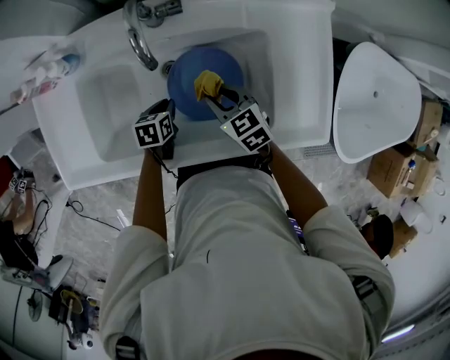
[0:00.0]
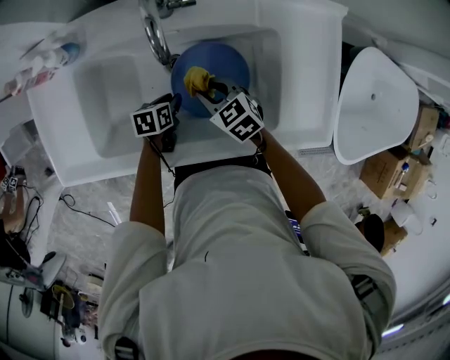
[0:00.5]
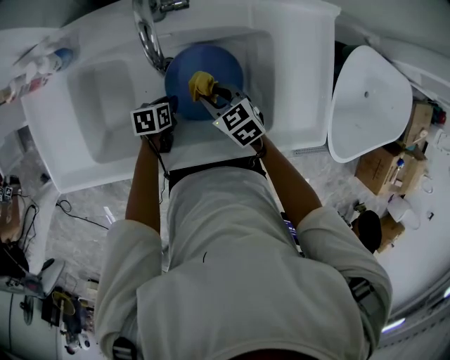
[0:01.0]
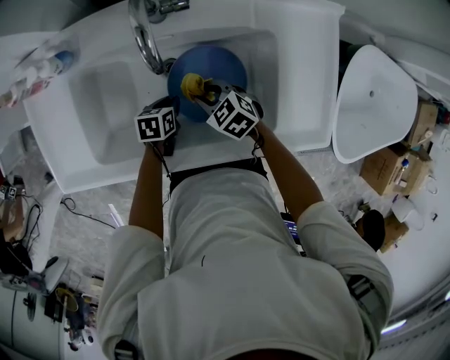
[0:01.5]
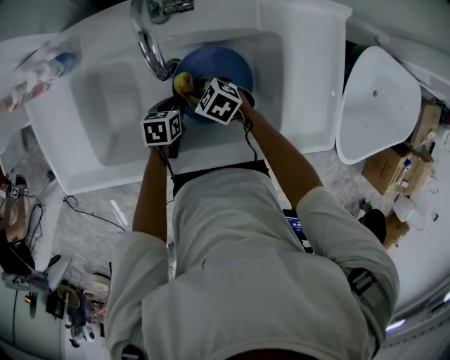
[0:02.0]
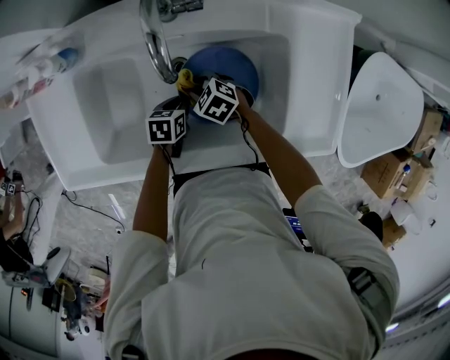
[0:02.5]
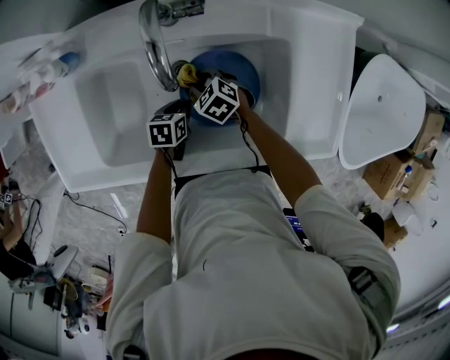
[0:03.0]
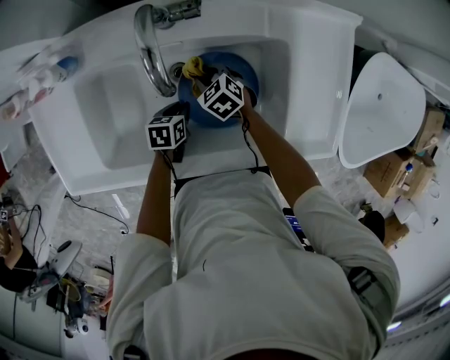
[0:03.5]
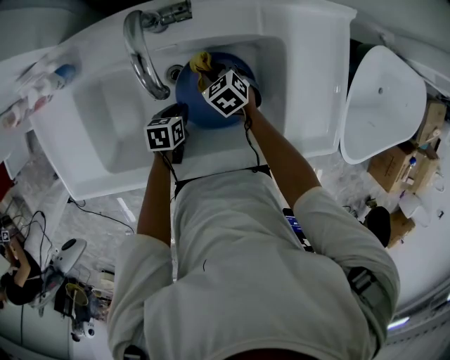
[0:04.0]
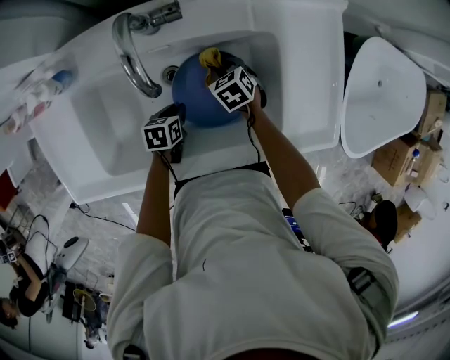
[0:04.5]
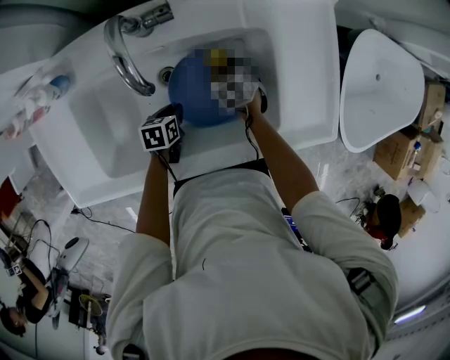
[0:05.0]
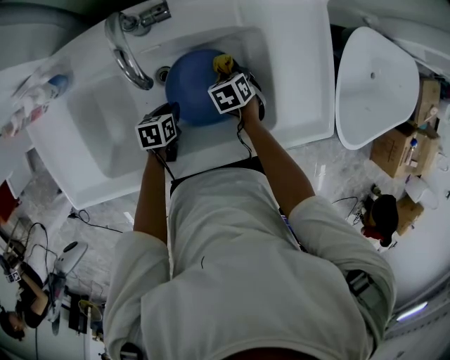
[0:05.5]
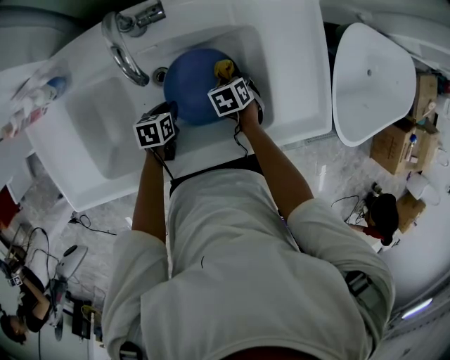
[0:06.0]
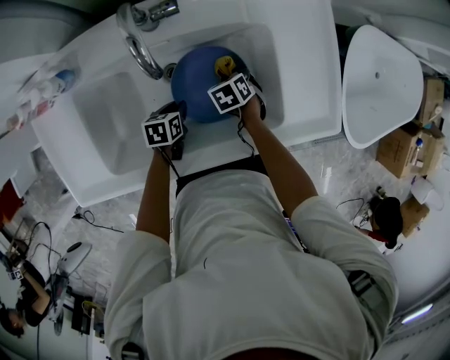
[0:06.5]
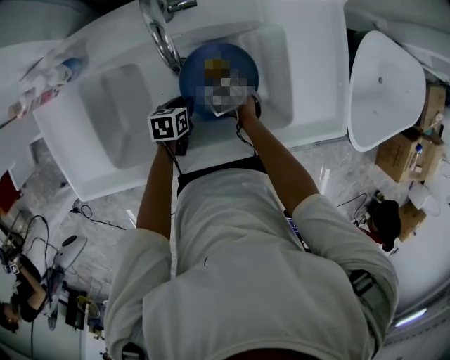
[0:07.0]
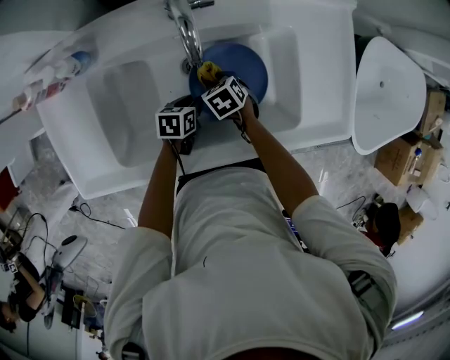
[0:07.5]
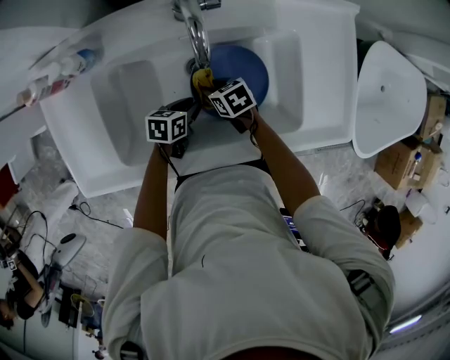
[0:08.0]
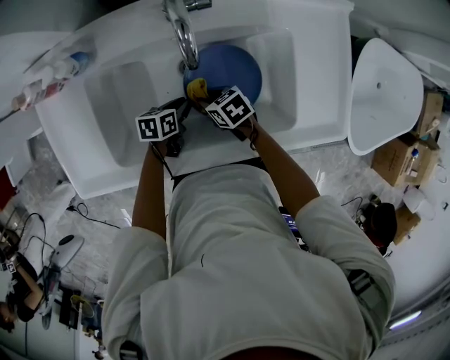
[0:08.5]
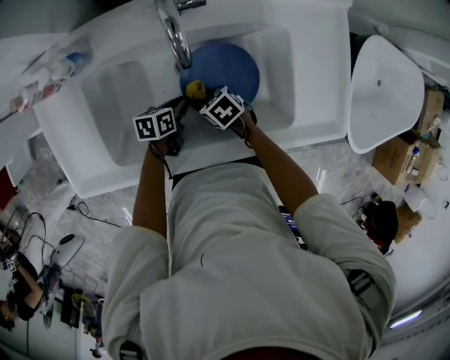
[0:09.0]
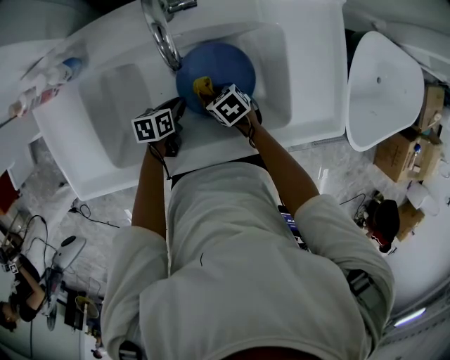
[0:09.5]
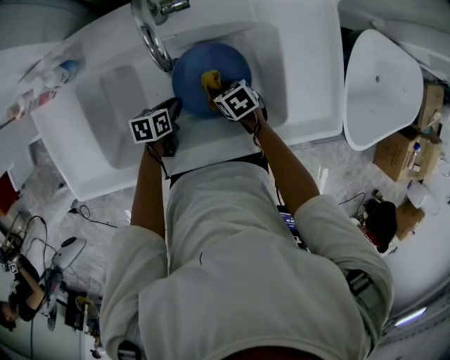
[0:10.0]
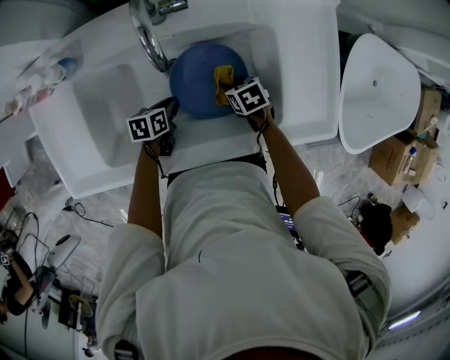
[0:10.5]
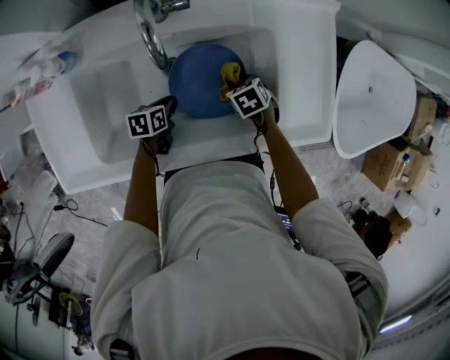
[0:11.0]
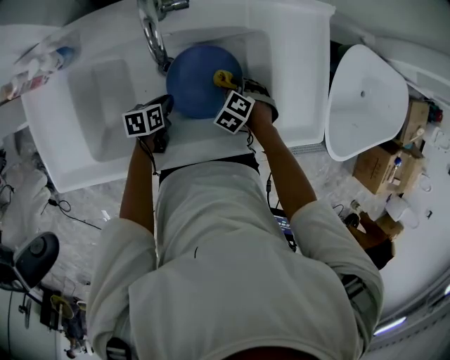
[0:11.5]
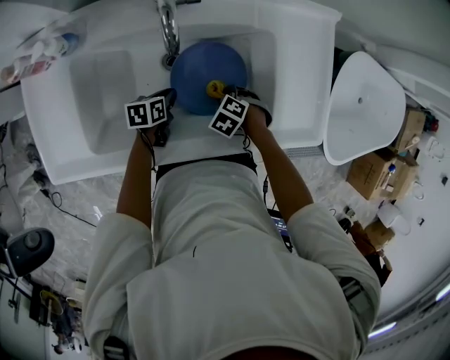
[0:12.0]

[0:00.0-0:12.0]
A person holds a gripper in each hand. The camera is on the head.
0:00.0 to 0:02.0: The right gripper shifts roughly 10 cm downward, and changes its angle by some 30 degrees.
0:02.0 to 0:04.0: The right gripper ends up roughly 10 cm from where it was, and changes its angle by about 20 degrees.
0:04.0 to 0:06.0: The right gripper ends up about 15 cm from where it was, and rotates about 30 degrees.
0:06.0 to 0:08.0: The right gripper ends up approximately 20 cm from where it was, and turns by approximately 30 degrees.
0:08.0 to 0:10.0: The right gripper moves about 10 cm.
0:10.0 to 0:12.0: The right gripper shifts by roughly 5 cm, and rotates some 40 degrees.

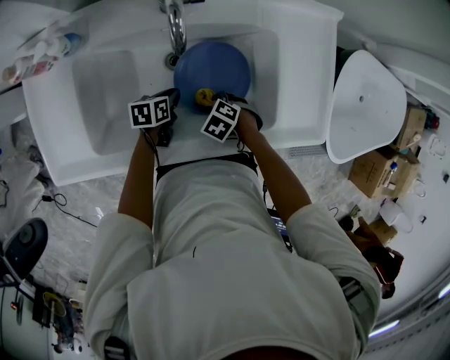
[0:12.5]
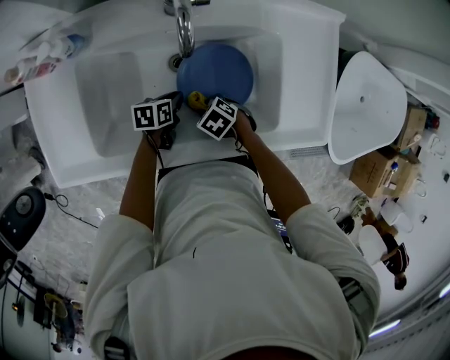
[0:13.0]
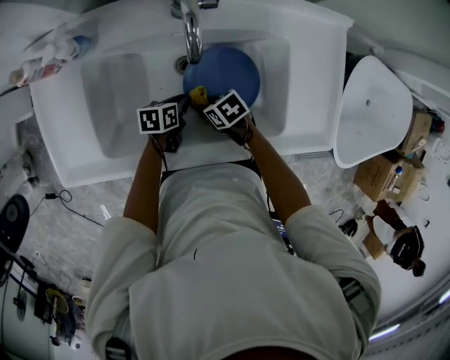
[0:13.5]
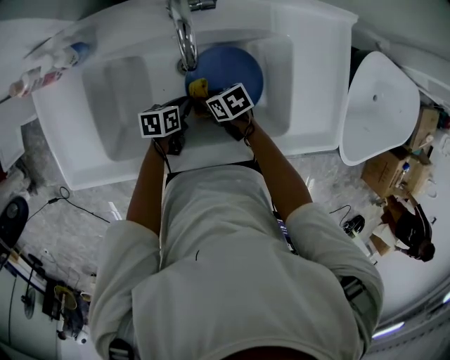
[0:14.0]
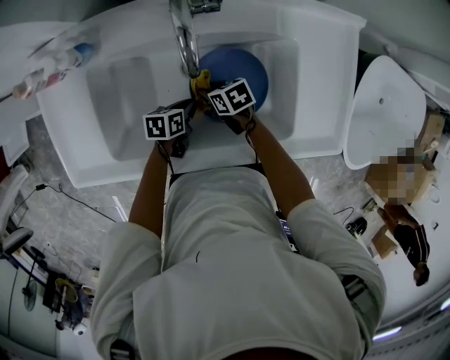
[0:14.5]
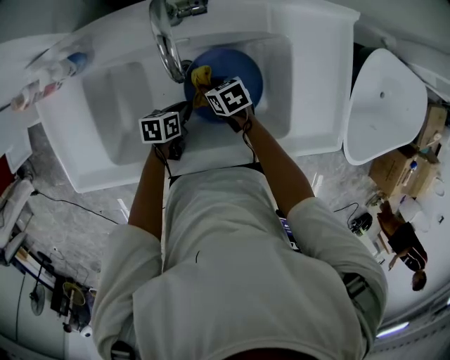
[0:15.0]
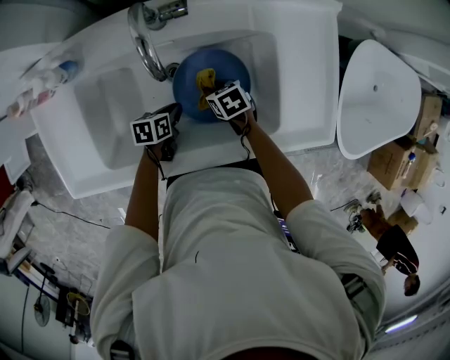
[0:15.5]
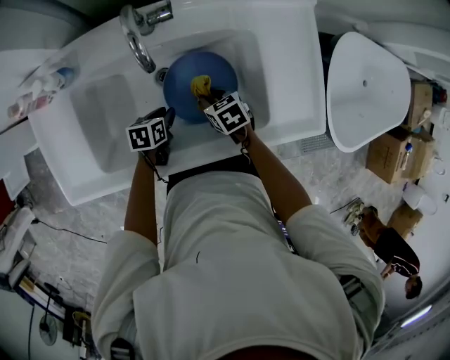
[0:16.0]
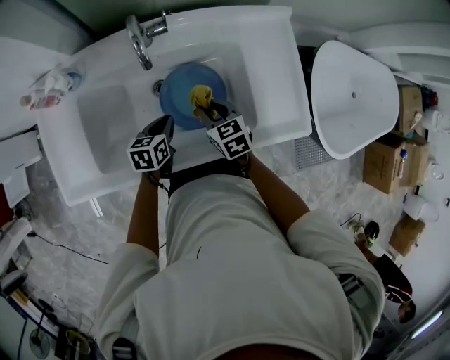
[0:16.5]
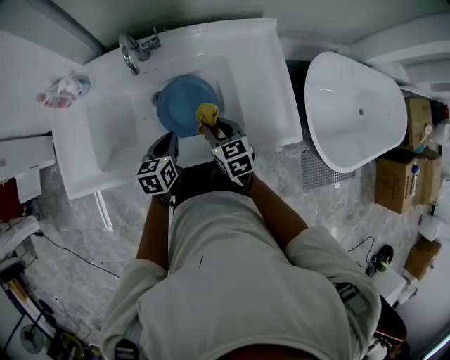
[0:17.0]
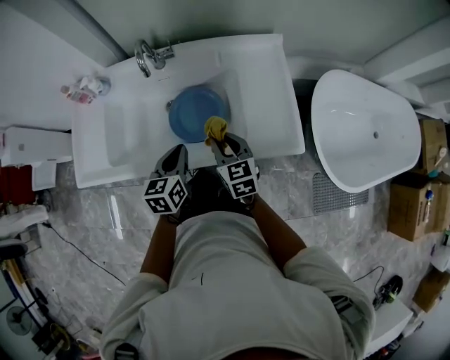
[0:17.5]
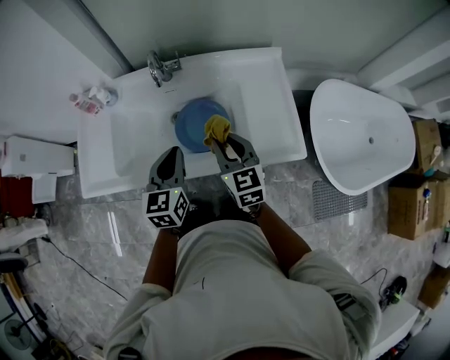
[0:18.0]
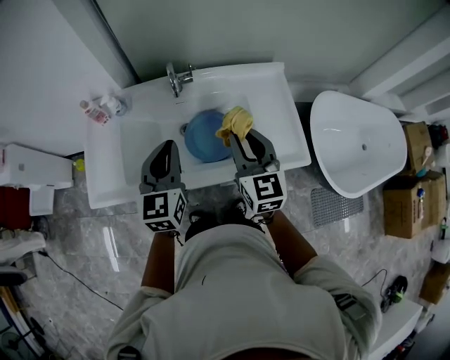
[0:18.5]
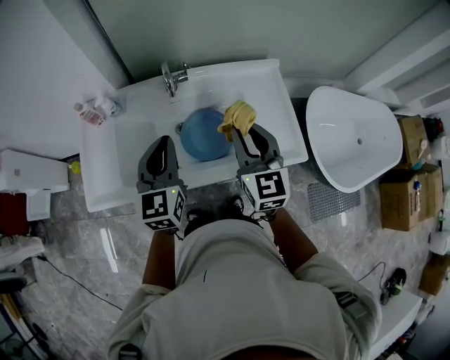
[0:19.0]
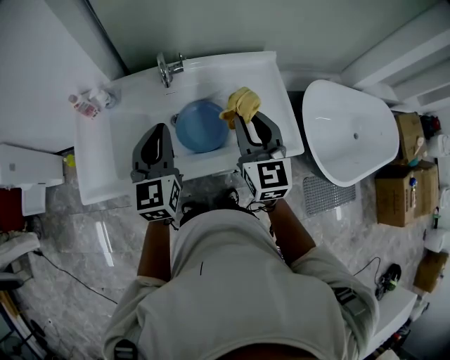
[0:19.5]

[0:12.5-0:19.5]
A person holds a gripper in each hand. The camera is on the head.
0:12.5 to 0:14.5: The right gripper changes place by about 10 cm, and changes its angle by some 50 degrees.
0:14.5 to 0:16.0: The right gripper moves about 10 cm.
0:16.0 to 0:17.5: The right gripper is displaced upward, backward and to the right by roughly 25 cm, and tips its fingers upward by about 30 degrees. The left gripper goes roughly 30 cm upward, to the right and backward, turns by approximately 40 degrees, and closes its fingers.
0:17.5 to 0:19.5: The right gripper is displaced upward by some 20 cm, and rotates some 30 degrees. Meanwhile the left gripper moves upward and to the left, roughly 20 cm, and changes its angle by roughly 30 degrees.

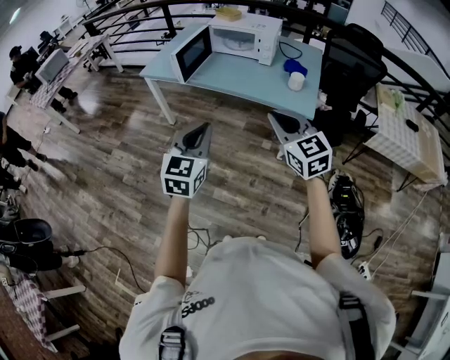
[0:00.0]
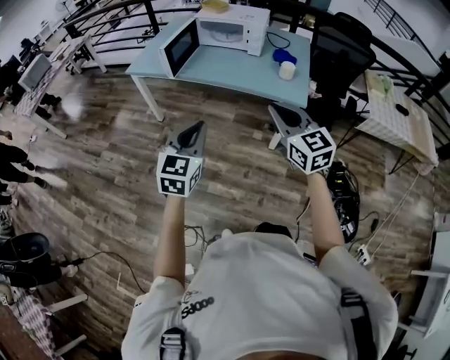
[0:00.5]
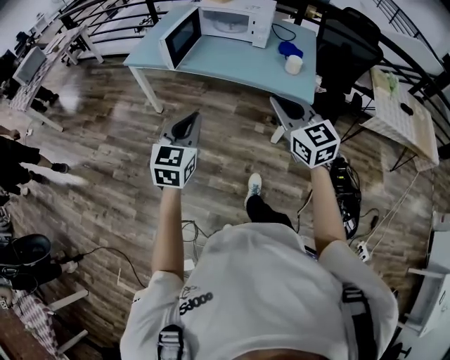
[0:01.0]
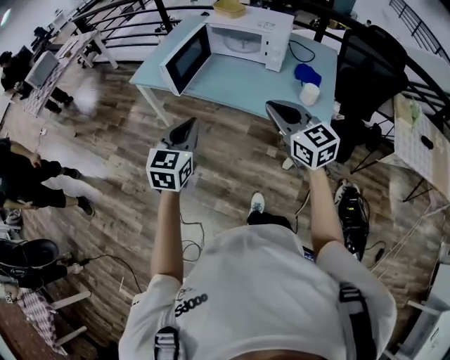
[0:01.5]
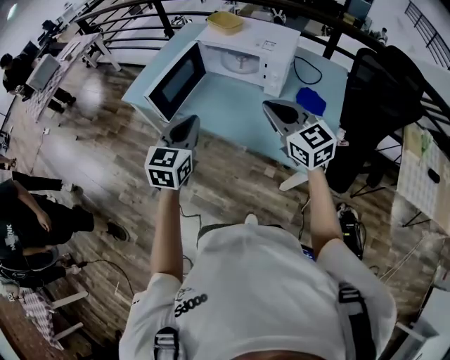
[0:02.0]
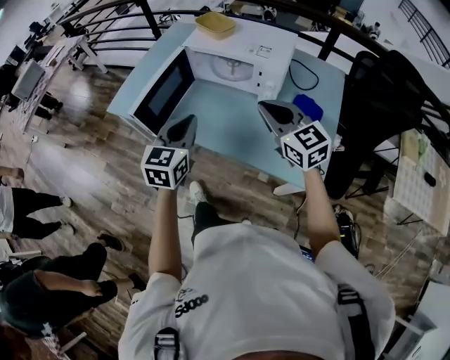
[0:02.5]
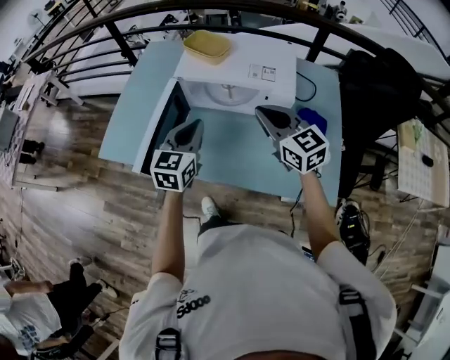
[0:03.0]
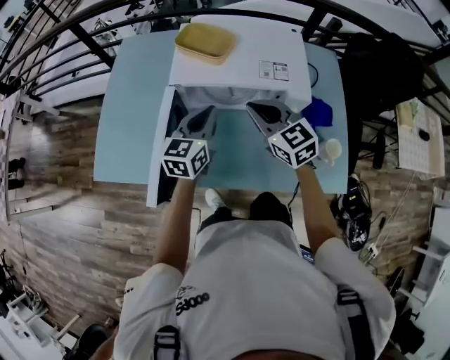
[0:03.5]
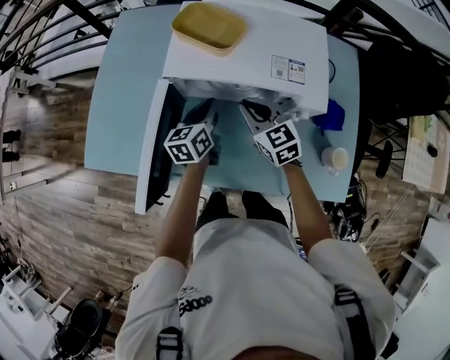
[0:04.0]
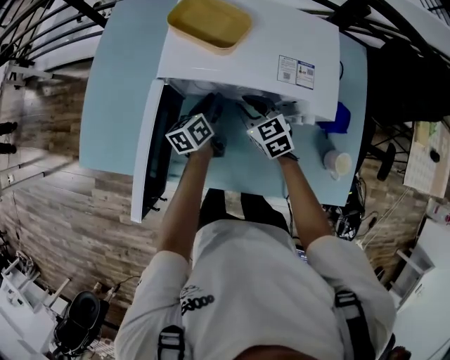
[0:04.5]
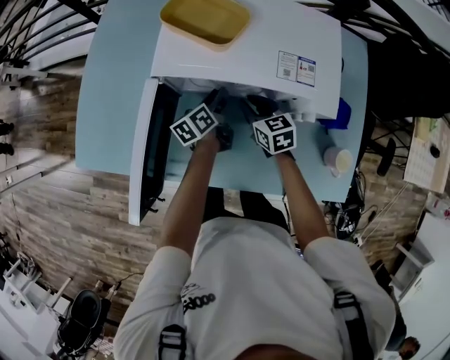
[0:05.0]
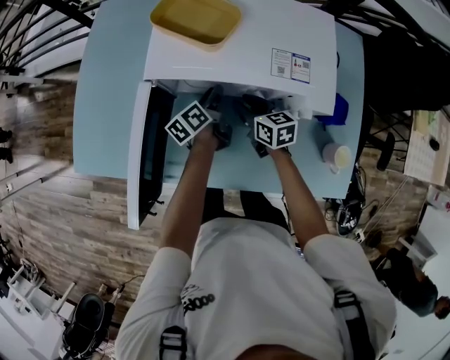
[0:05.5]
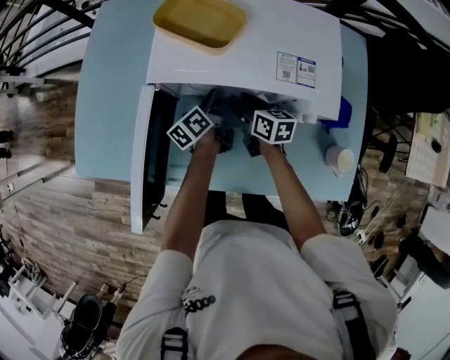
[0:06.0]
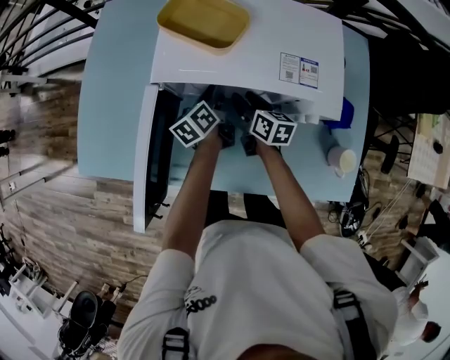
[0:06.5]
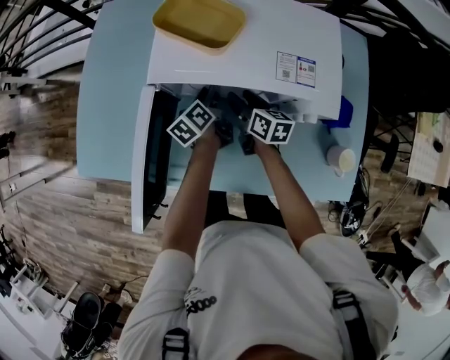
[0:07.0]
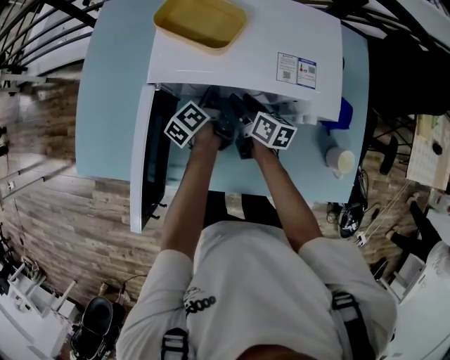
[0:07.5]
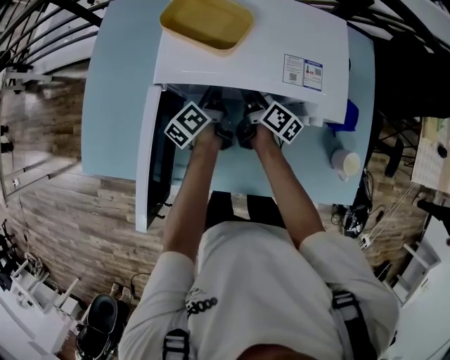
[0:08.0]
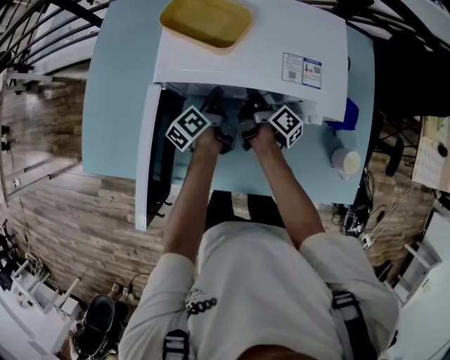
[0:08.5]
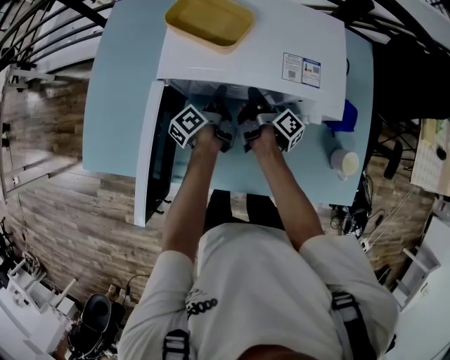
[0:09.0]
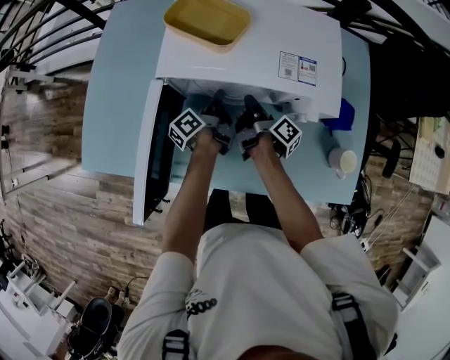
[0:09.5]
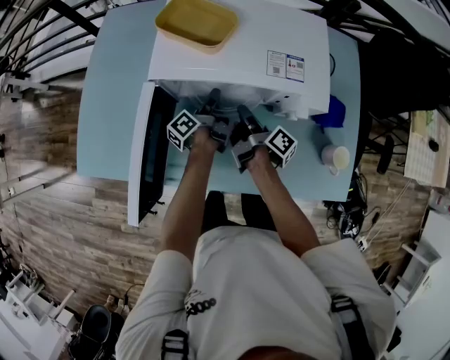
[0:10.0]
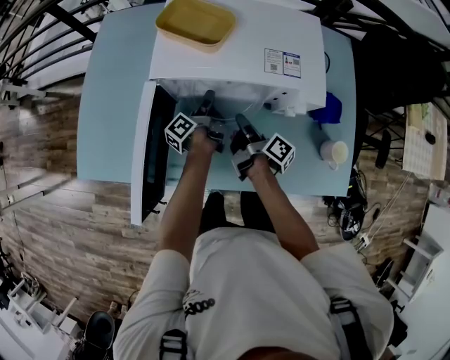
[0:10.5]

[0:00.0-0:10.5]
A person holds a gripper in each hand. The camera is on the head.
0:00.0 to 0:02.0: The two grippers travel together, forward, roughly 40 cm.
0:02.0 to 0:04.0: Both grippers travel together forward and downward, some 50 cm. The right gripper changes its angle by roughly 30 degrees; the left gripper changes its angle by approximately 40 degrees.
0:04.0 to 0:06.5: The grippers both shift downward and forward by about 10 cm. The left gripper swivels some 20 degrees. Meanwhile the right gripper rolls clockwise, seen from behind, by about 50 degrees, and opens its fingers.
0:06.5 to 0:08.5: The right gripper rolls clockwise, seen from behind, by roughly 50 degrees, and closes.
0:08.5 to 0:10.5: The right gripper moves backward, approximately 10 cm, while the left gripper changes its angle by about 20 degrees, and opens up.
